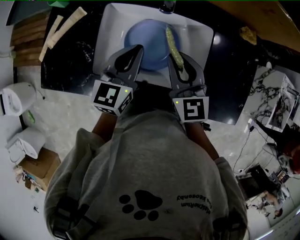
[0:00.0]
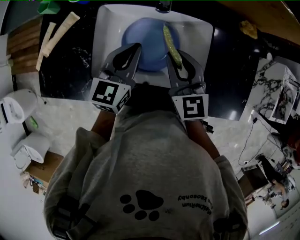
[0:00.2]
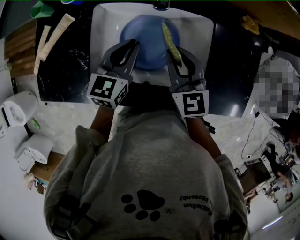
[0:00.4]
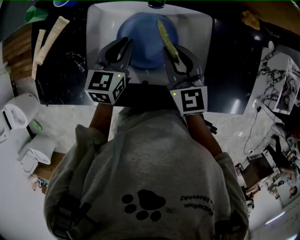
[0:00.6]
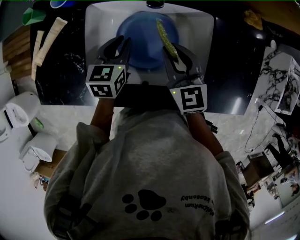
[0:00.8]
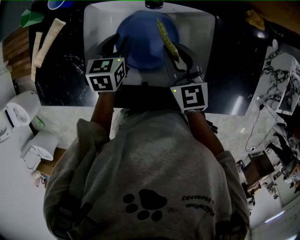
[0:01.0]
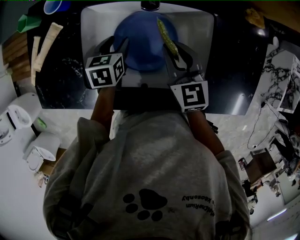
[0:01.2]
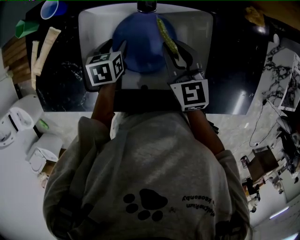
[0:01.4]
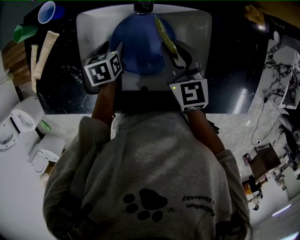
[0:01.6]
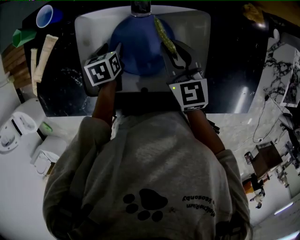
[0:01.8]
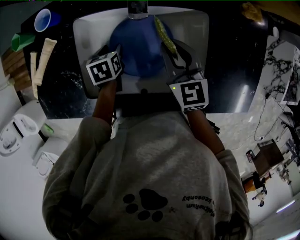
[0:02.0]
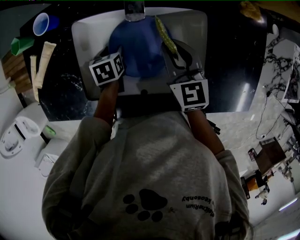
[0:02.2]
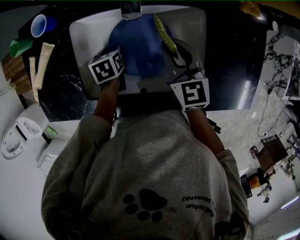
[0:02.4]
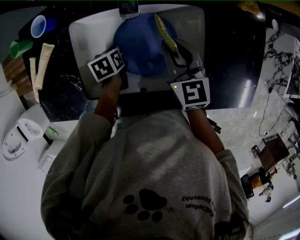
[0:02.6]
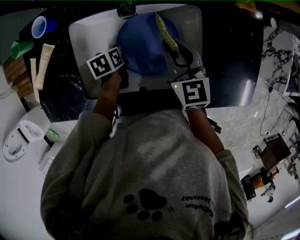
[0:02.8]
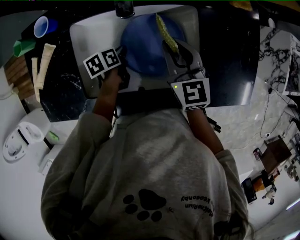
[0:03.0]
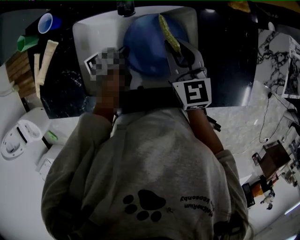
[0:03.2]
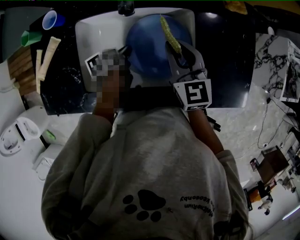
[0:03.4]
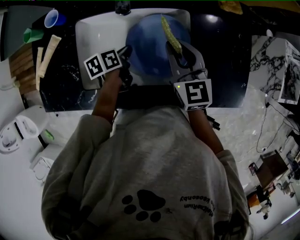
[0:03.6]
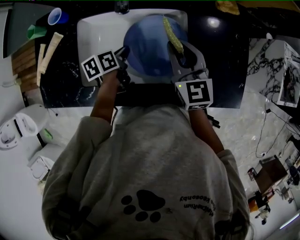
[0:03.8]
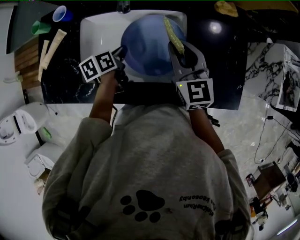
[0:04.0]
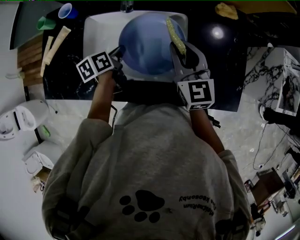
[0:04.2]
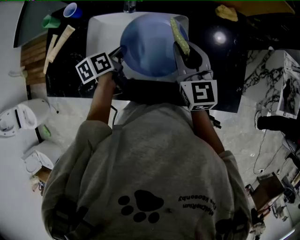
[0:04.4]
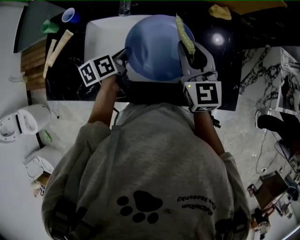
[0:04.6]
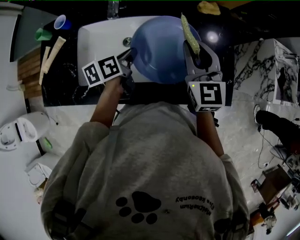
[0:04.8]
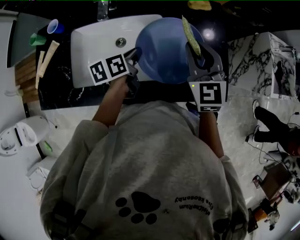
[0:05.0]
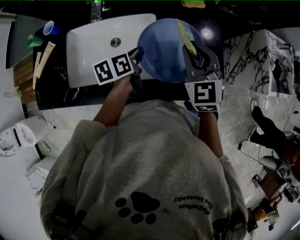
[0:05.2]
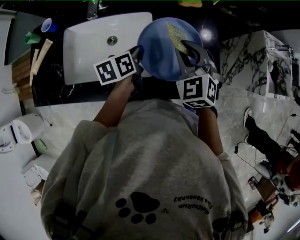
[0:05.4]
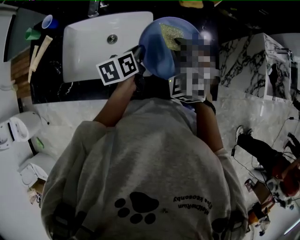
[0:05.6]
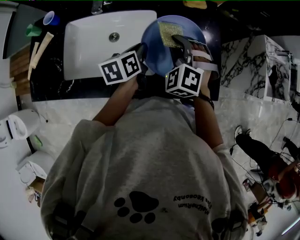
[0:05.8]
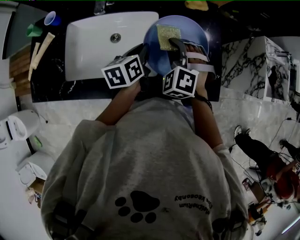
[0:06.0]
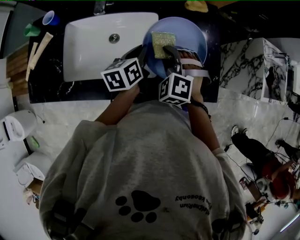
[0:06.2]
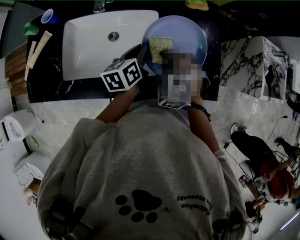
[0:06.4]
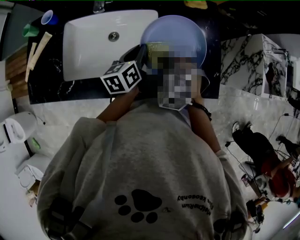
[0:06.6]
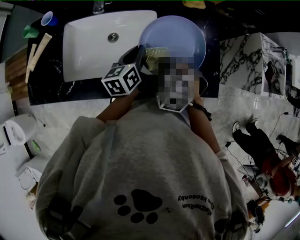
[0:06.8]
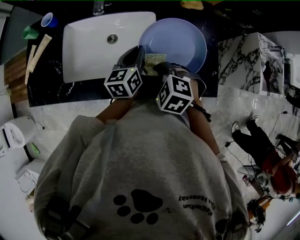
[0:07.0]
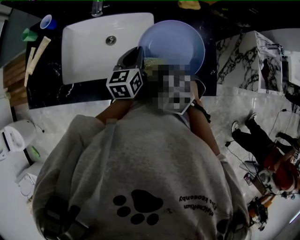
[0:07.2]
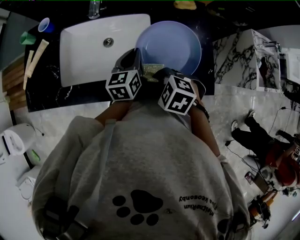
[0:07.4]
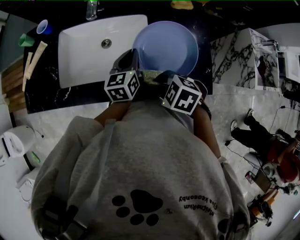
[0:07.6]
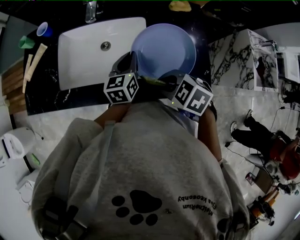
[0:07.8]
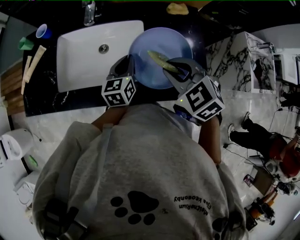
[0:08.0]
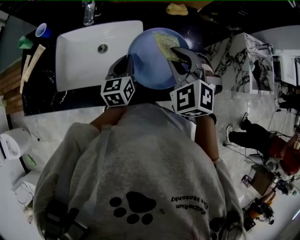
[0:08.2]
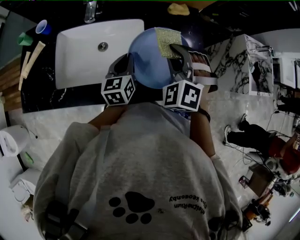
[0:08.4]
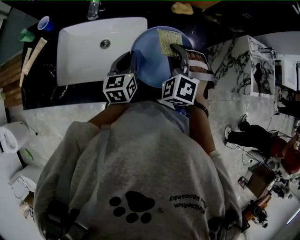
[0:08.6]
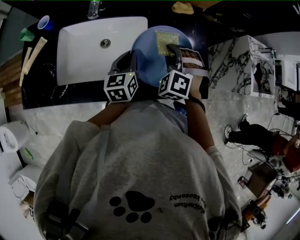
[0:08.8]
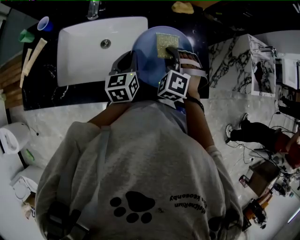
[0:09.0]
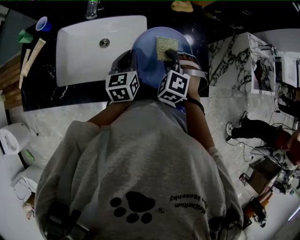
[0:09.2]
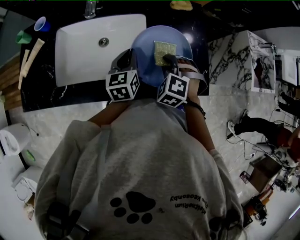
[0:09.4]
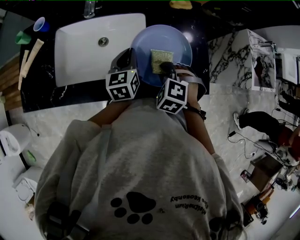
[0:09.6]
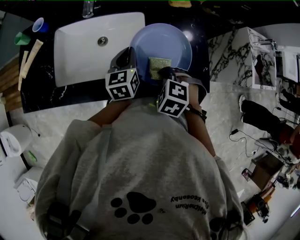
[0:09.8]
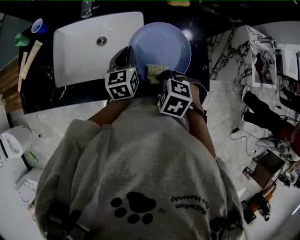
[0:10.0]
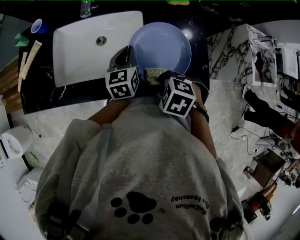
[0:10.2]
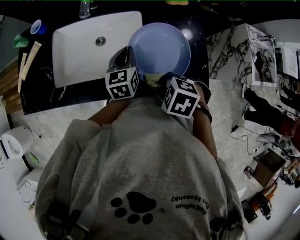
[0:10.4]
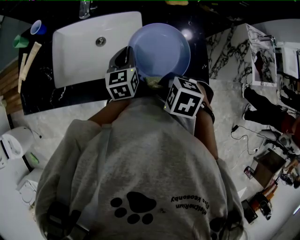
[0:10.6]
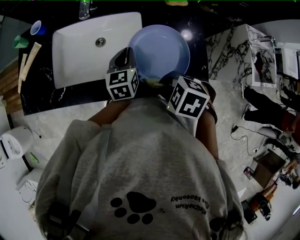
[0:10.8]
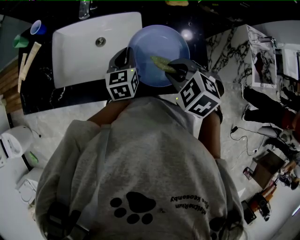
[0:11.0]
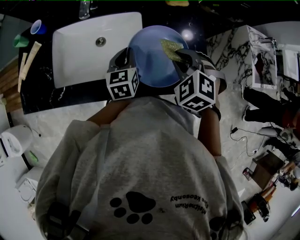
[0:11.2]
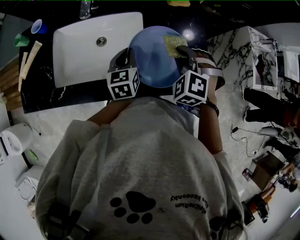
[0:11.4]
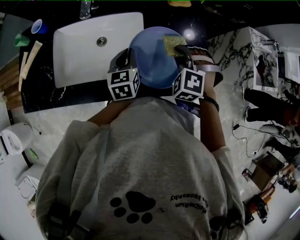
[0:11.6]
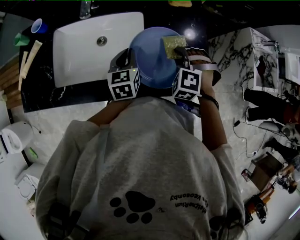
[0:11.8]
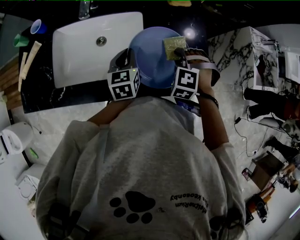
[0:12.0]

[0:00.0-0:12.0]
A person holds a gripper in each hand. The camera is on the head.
0.0 to 1.6 s: The right gripper moves downward and forward, some 10 cm; the left gripper goes approximately 20 cm downward, tilts its fingers roughly 40 degrees downward, and opens.
1.6 to 3.0 s: The left gripper is displaced to the right by roughly 5 cm, swivels about 20 degrees, and closes.
3.0 to 4.4 s: The right gripper goes approximately 10 cm upward and to the right. The left gripper travels upward by approximately 15 cm.
4.4 to 6.0 s: The left gripper goes some 20 cm to the right. Meanwhile the right gripper is displaced to the right and downward by approximately 10 cm, and twists approximately 60 degrees counterclockwise, seen from behind.
6.0 to 7.6 s: The right gripper ends up some 15 cm from where it was, and turns by about 50 degrees; the left gripper turns by roughly 20 degrees.
7.6 to 9.0 s: The right gripper moves some 10 cm upward and comes back, and swivels approximately 60 degrees.
9.0 to 10.4 s: The right gripper shifts by roughly 15 cm, and rotates about 50 degrees.
10.4 to 12.0 s: The right gripper moves approximately 20 cm, and rotates approximately 50 degrees.

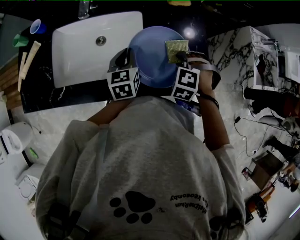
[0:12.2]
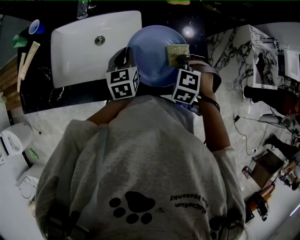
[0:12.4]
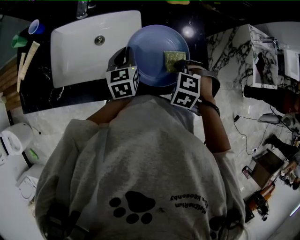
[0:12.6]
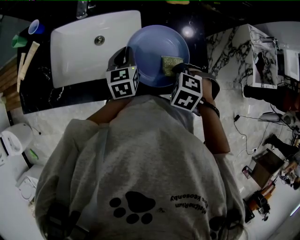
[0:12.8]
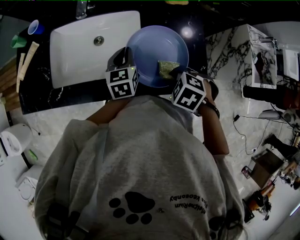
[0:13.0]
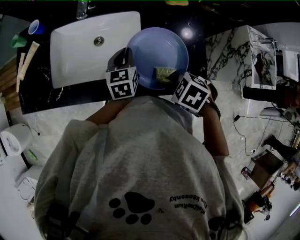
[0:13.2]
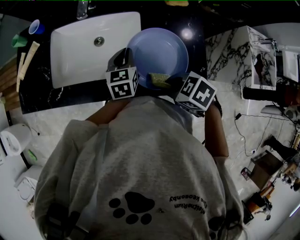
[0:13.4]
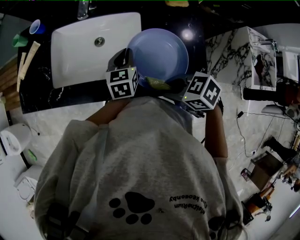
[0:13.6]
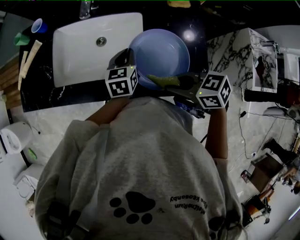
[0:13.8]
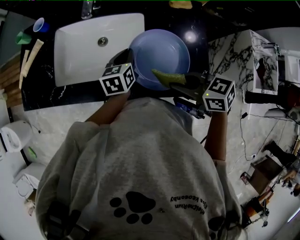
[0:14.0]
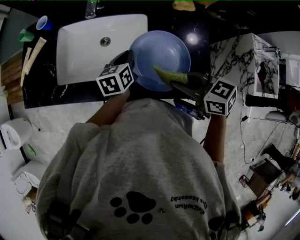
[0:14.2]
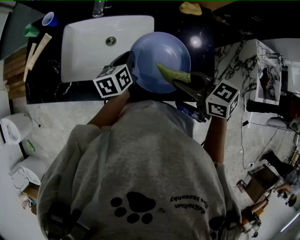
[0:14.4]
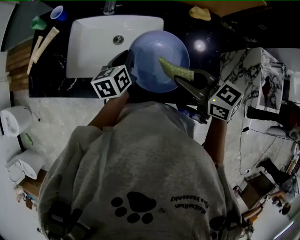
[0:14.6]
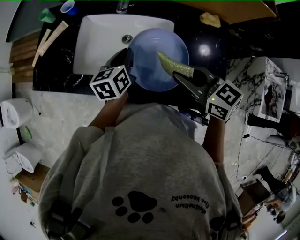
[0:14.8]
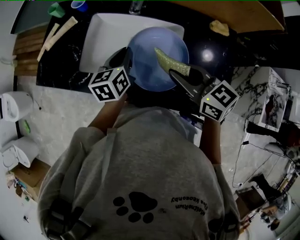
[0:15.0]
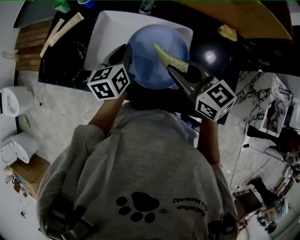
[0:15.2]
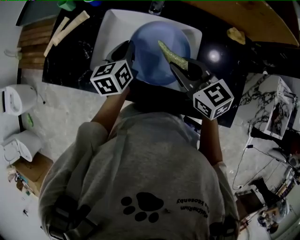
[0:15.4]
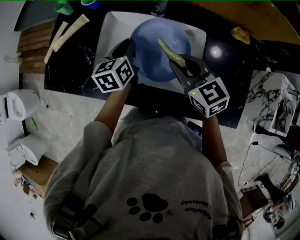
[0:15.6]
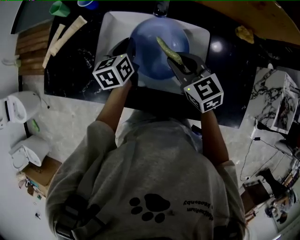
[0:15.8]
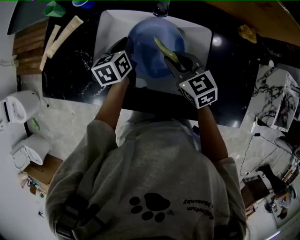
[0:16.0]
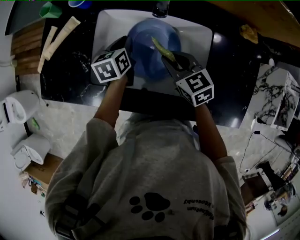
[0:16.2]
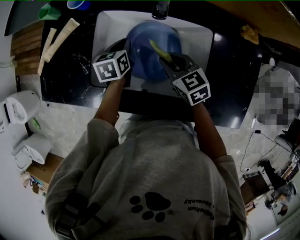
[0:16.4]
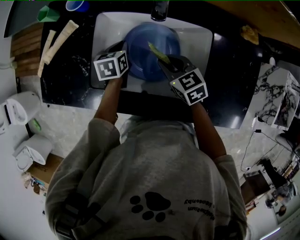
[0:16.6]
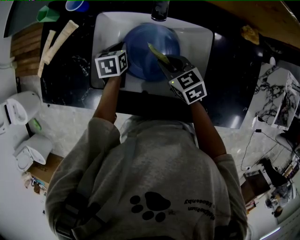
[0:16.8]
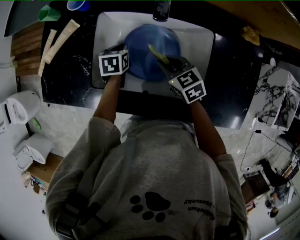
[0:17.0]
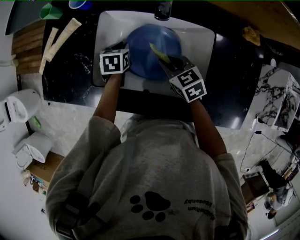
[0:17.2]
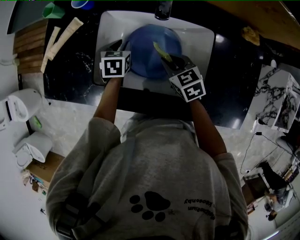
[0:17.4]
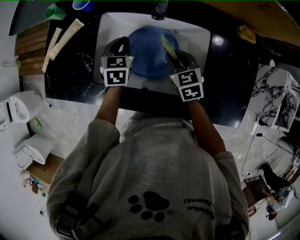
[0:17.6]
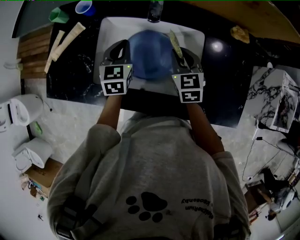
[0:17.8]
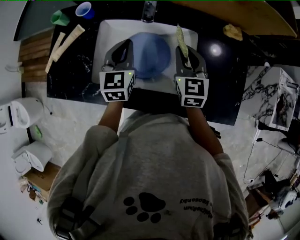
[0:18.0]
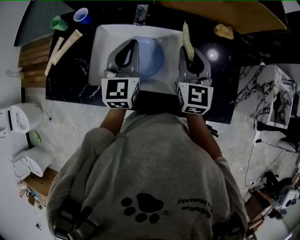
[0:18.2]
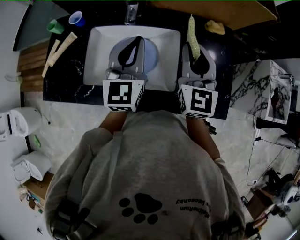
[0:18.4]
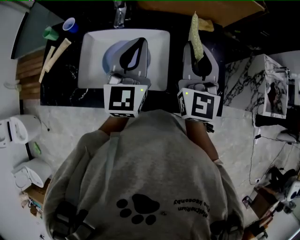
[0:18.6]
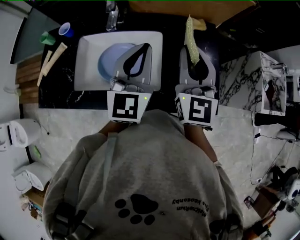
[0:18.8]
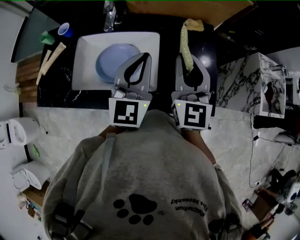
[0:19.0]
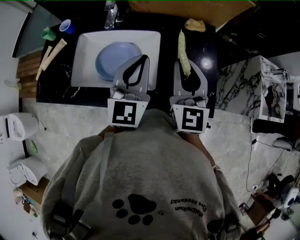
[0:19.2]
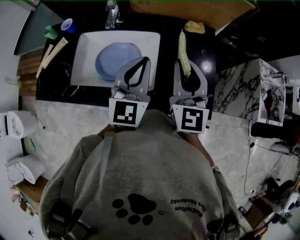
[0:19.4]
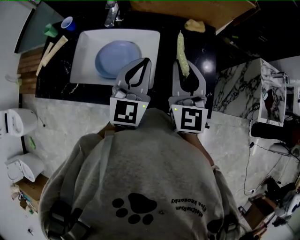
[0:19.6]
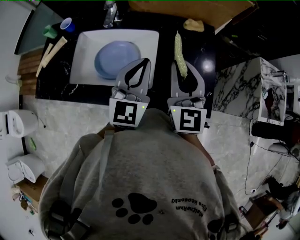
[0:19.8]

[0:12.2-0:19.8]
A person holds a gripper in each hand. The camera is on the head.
12.2 to 13.8 s: The right gripper moves roughly 15 cm, and turns by approximately 80 degrees.
13.8 to 15.2 s: The left gripper travels to the left and forward by roughly 20 cm. Meanwhile the right gripper travels forward and to the left by some 20 cm, and changes its angle by some 30 degrees.
15.2 to 16.8 s: Both grippers move downward and forward, approximately 20 cm. The right gripper turns by some 20 degrees. The left gripper rotates some 30 degrees.
16.8 to 18.2 s: Both grippers travel together upward and to the right, roughly 25 cm. The right gripper rotates about 50 degrees. The left gripper tilts its fingers some 40 degrees upward, and opens, then closes once more.
18.2 to 19.8 s: The right gripper shifts some 15 cm to the right, backward and upward. The left gripper heads to the right and backward, covering some 20 cm.

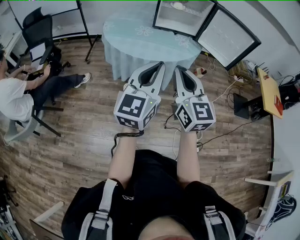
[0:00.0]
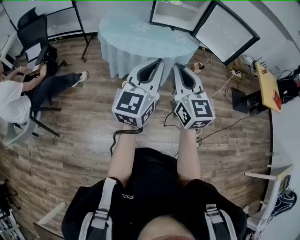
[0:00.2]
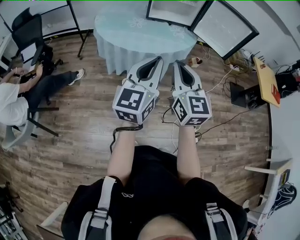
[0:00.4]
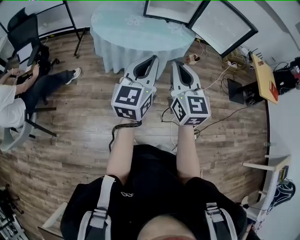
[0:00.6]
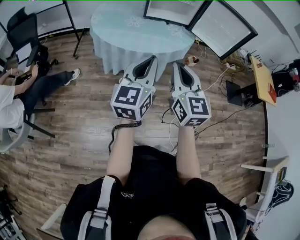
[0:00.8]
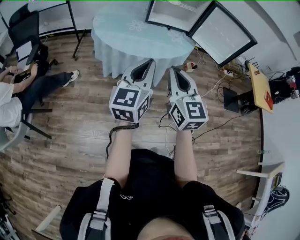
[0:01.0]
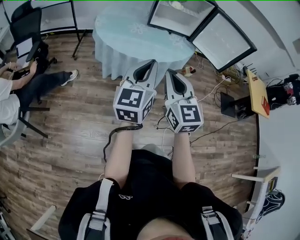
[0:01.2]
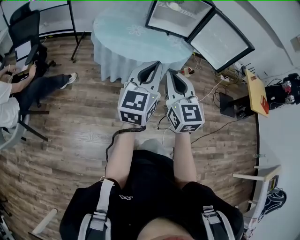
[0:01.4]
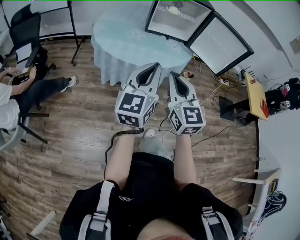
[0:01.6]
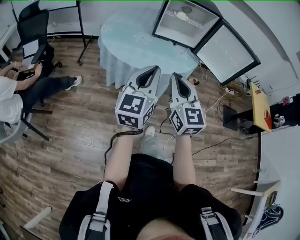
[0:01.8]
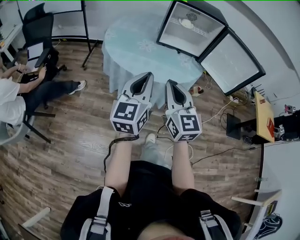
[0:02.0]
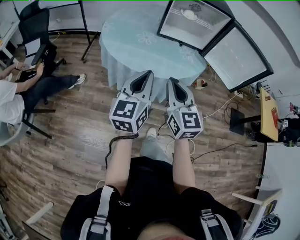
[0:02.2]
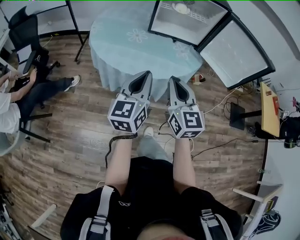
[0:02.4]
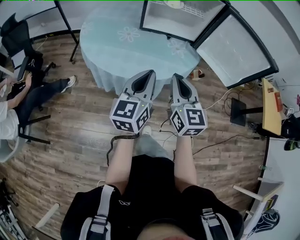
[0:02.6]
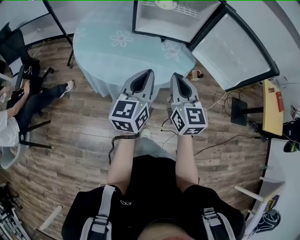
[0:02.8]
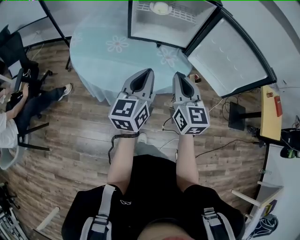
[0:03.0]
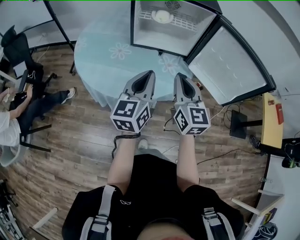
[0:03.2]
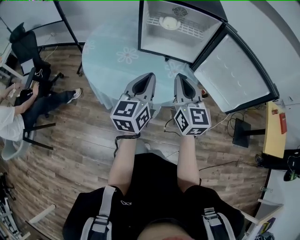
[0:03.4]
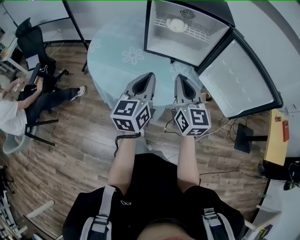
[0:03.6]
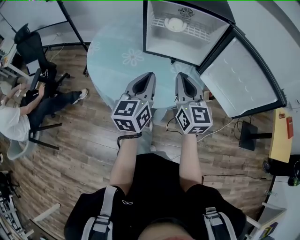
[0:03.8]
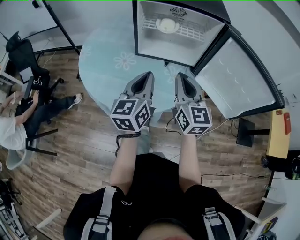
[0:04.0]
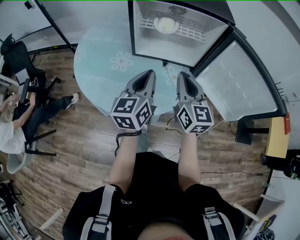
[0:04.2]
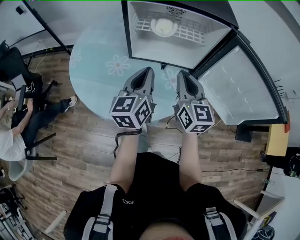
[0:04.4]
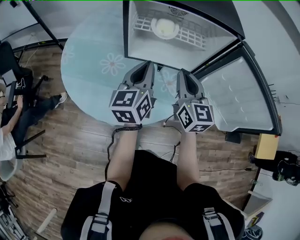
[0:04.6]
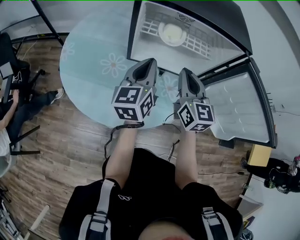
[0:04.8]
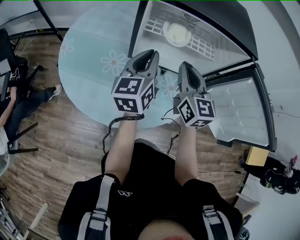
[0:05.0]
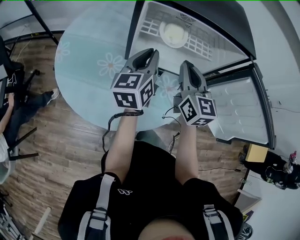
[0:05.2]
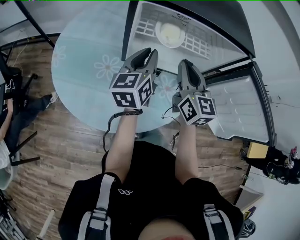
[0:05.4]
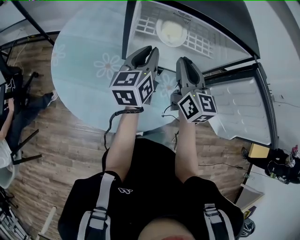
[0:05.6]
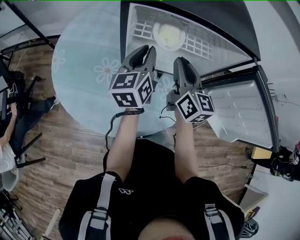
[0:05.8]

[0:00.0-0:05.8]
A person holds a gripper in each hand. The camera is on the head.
0.0 to 1.4 s: The right gripper ends up about 5 cm from where it was. The left gripper goes about 5 cm forward.
1.4 to 2.8 s: The grippers both shift forward and to the right by about 30 cm.
2.8 to 4.4 s: Both grippers move forward, some 20 cm.
4.4 to 5.8 s: The two grippers go about 15 cm forward.
